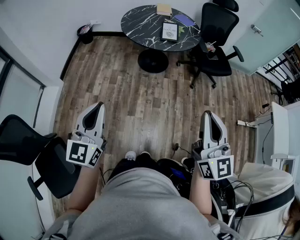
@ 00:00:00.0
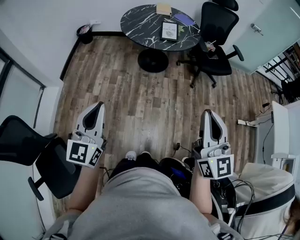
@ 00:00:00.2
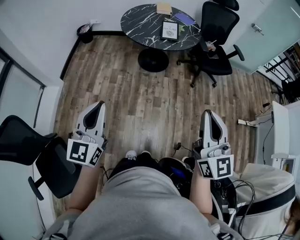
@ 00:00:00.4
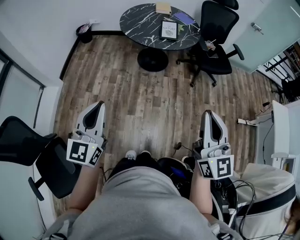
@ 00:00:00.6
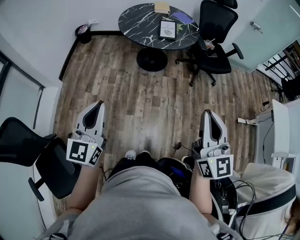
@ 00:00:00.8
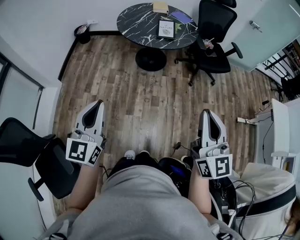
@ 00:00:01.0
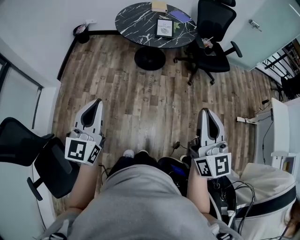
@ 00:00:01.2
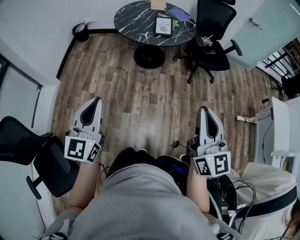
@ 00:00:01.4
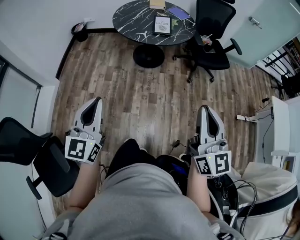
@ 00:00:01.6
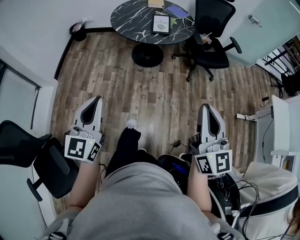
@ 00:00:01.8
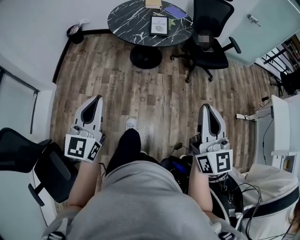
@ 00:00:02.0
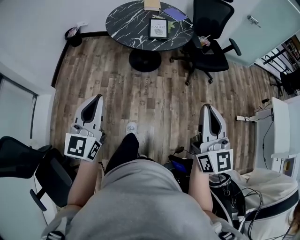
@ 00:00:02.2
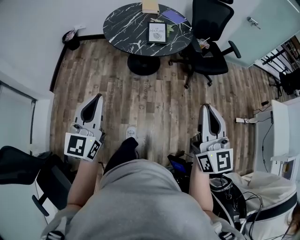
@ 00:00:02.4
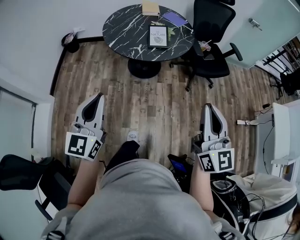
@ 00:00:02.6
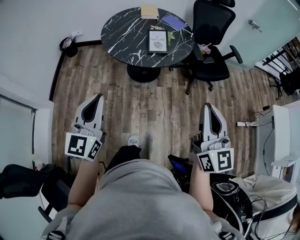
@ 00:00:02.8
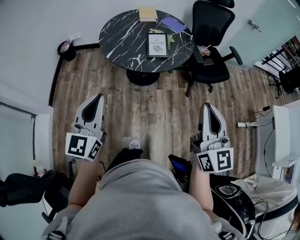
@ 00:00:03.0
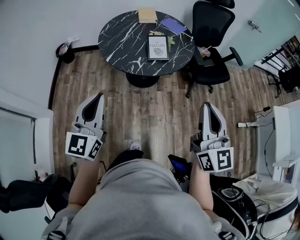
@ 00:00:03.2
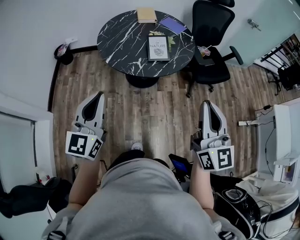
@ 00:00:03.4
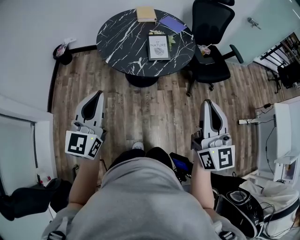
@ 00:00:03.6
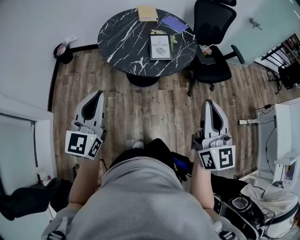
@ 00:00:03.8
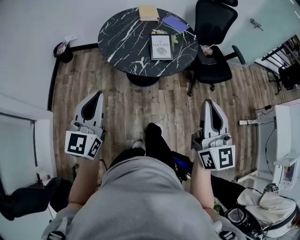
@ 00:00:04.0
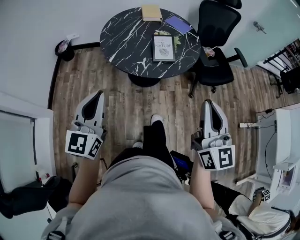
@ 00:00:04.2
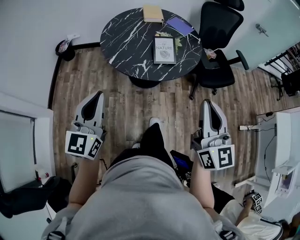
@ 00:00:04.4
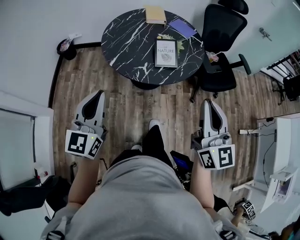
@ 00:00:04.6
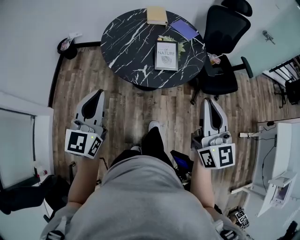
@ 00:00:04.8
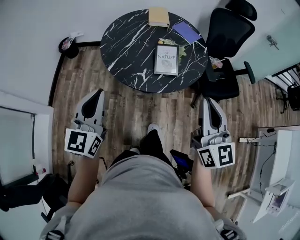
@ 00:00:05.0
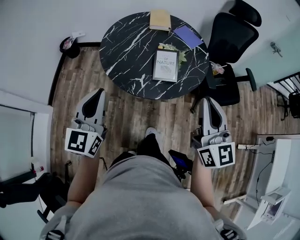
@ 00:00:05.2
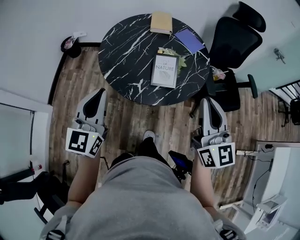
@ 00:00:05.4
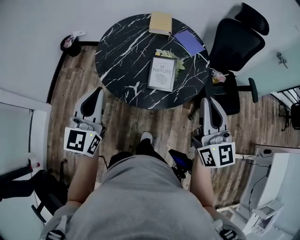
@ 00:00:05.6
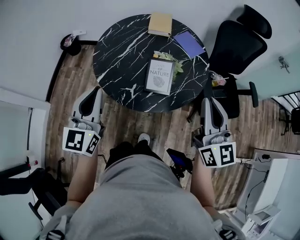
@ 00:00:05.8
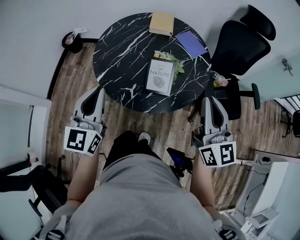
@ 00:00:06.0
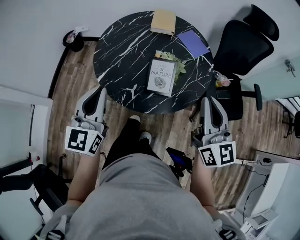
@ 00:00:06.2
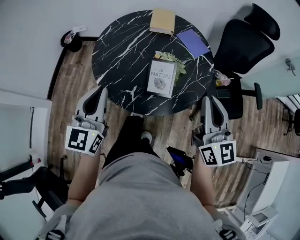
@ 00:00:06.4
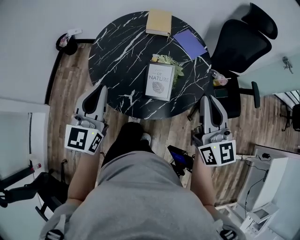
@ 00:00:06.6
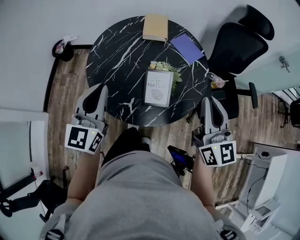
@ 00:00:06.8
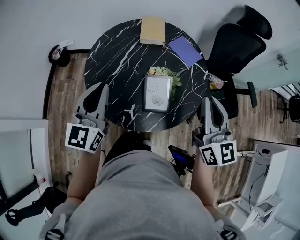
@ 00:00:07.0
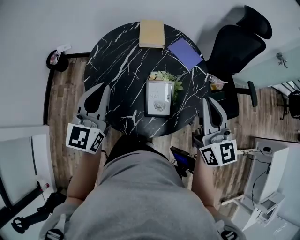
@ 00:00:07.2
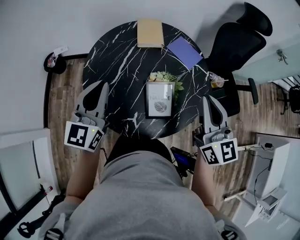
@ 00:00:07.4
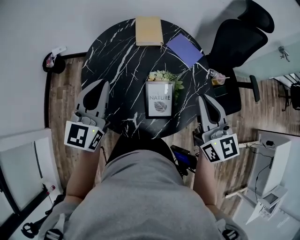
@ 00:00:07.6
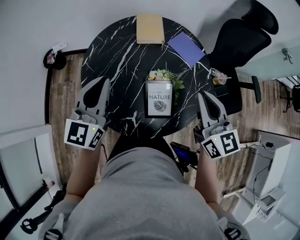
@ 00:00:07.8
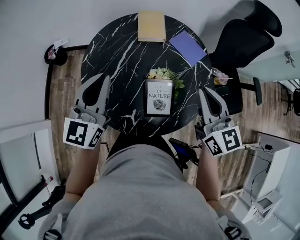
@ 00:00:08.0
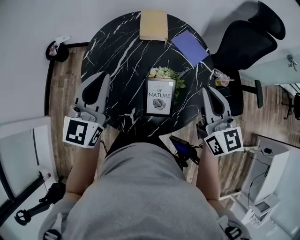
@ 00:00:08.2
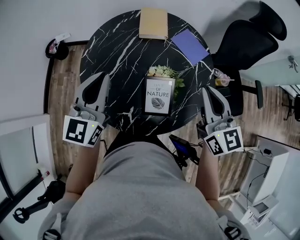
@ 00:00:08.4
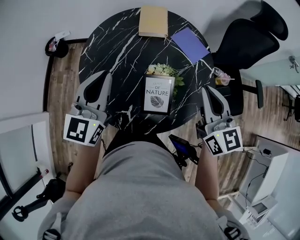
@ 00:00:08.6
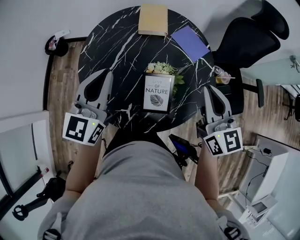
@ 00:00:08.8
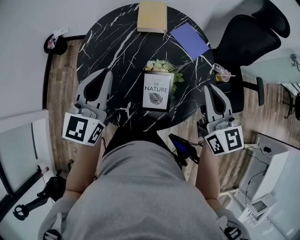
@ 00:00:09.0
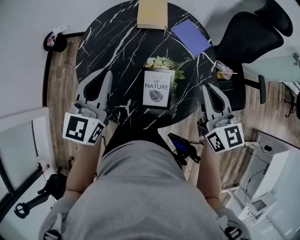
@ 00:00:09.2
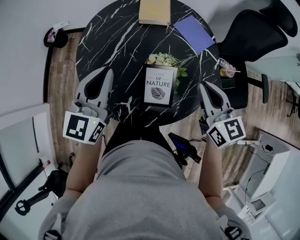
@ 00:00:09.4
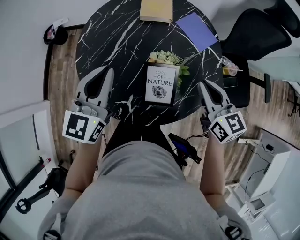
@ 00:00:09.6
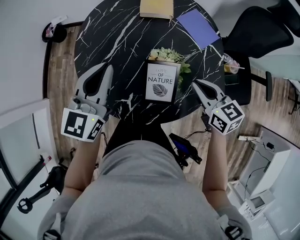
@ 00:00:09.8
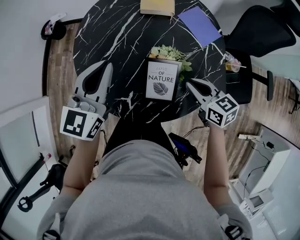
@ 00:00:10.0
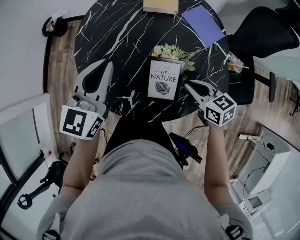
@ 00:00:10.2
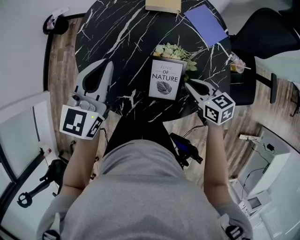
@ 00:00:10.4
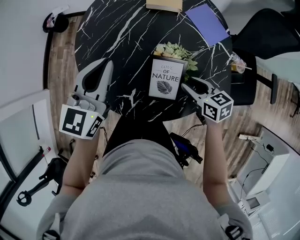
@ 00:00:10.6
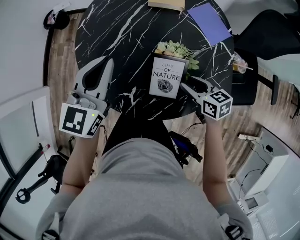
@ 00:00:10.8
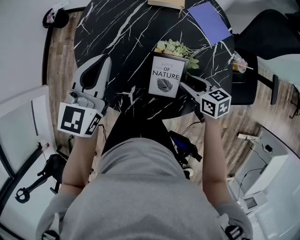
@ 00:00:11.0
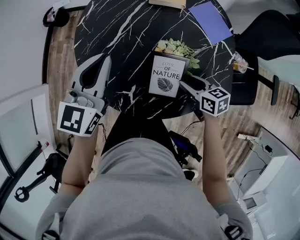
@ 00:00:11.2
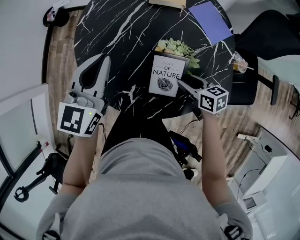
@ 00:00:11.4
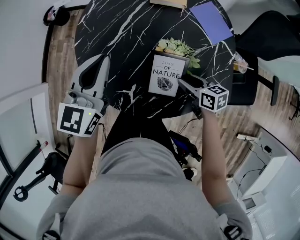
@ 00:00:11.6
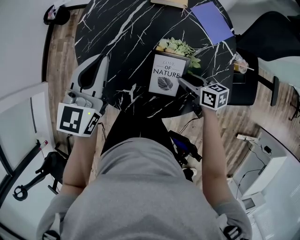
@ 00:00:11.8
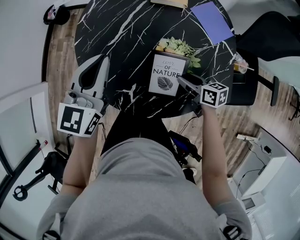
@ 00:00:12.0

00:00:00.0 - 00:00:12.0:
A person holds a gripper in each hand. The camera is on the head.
00:00:00.0 - 00:00:01.6: The right gripper ends up approximately 5 cm from where it was; the left gripper travels to the right by roughly 5 cm.
00:00:01.6 - 00:00:03.0: The two grippers go some 25 cm forward.
00:00:03.0 - 00:00:04.4: The right gripper is displaced forward and to the left by roughly 10 cm; the left gripper is displaced forward by about 10 cm.
00:00:04.4 - 00:00:06.0: The grippers both shift forward and to the right by some 25 cm.
00:00:06.0 - 00:00:07.6: Both grippers move forward, roughly 20 cm.
00:00:07.6 - 00:00:09.0: The right gripper ends up approximately 5 cm from where it was.
00:00:09.0 - 00:00:10.4: The left gripper heads downward, covering roughly 5 cm. Meanwhile the right gripper travels downward by some 25 cm, and swivels roughly 40 degrees.
00:00:10.4 - 00:00:12.0: The right gripper shifts about 5 cm downward, and opens its fingers.

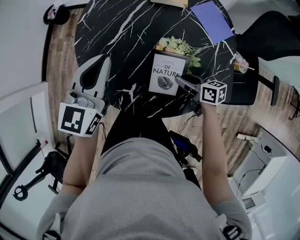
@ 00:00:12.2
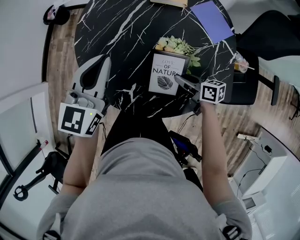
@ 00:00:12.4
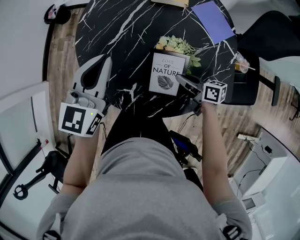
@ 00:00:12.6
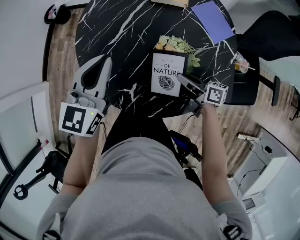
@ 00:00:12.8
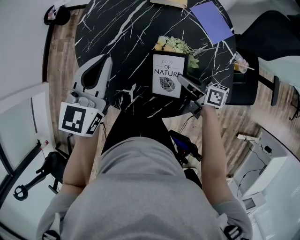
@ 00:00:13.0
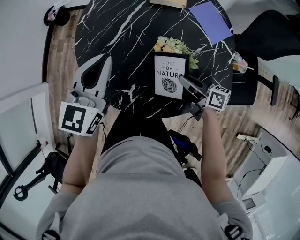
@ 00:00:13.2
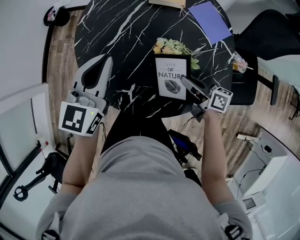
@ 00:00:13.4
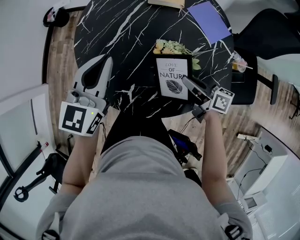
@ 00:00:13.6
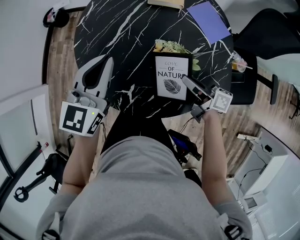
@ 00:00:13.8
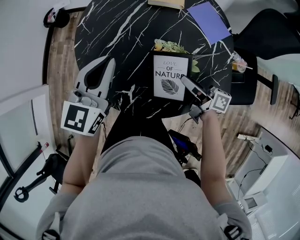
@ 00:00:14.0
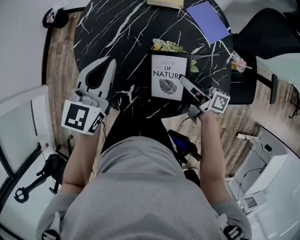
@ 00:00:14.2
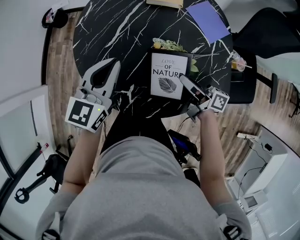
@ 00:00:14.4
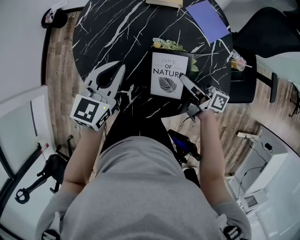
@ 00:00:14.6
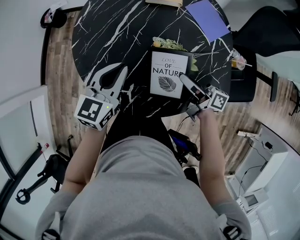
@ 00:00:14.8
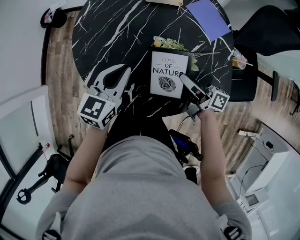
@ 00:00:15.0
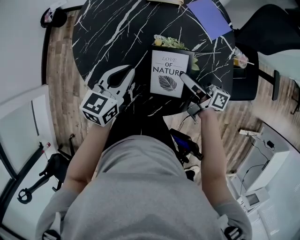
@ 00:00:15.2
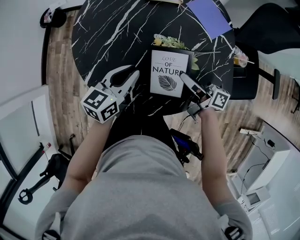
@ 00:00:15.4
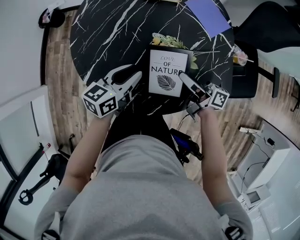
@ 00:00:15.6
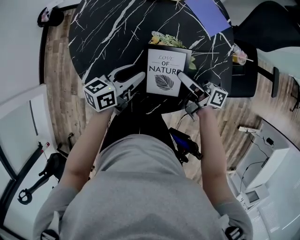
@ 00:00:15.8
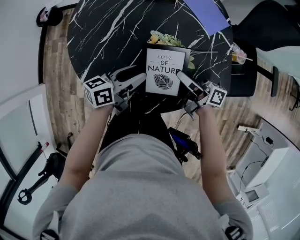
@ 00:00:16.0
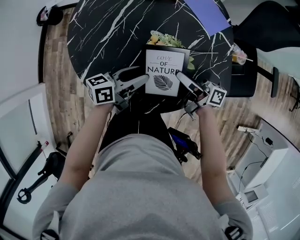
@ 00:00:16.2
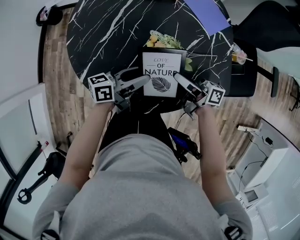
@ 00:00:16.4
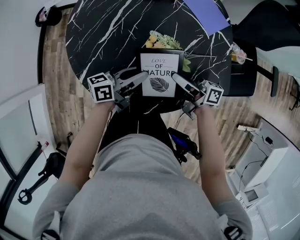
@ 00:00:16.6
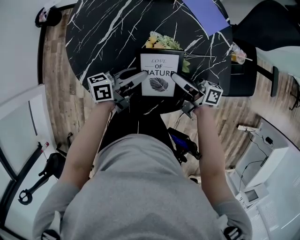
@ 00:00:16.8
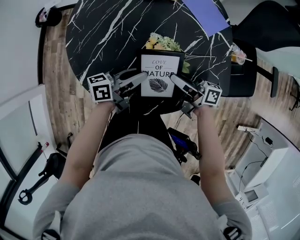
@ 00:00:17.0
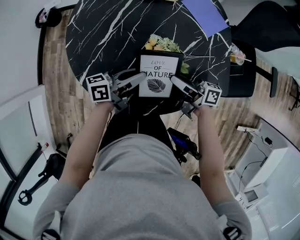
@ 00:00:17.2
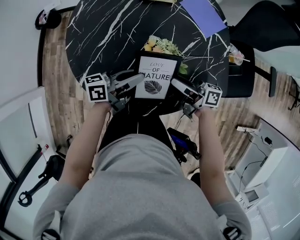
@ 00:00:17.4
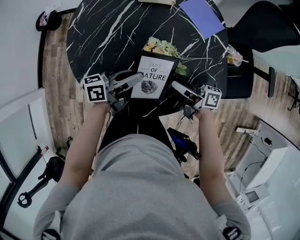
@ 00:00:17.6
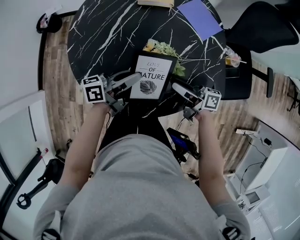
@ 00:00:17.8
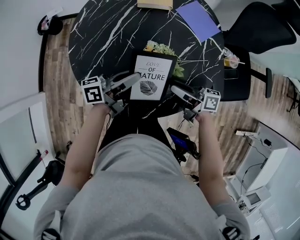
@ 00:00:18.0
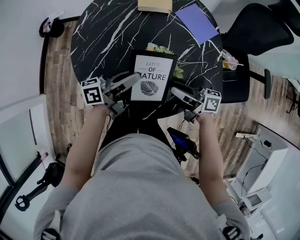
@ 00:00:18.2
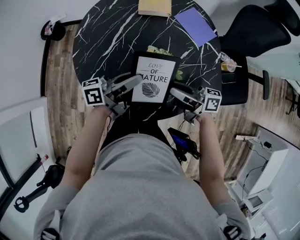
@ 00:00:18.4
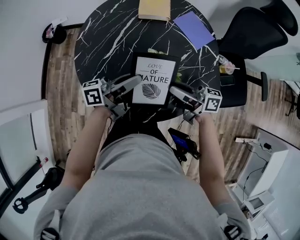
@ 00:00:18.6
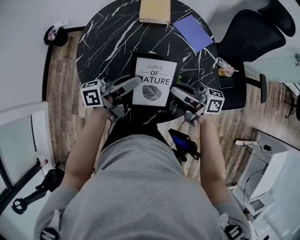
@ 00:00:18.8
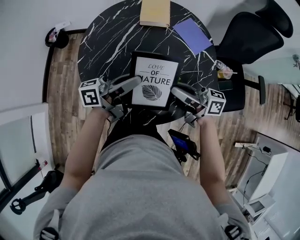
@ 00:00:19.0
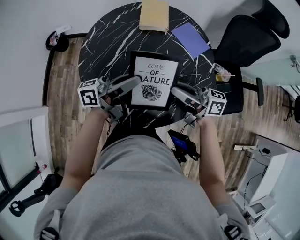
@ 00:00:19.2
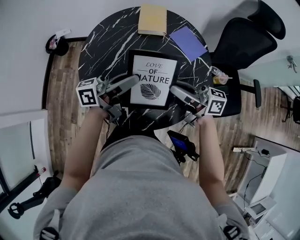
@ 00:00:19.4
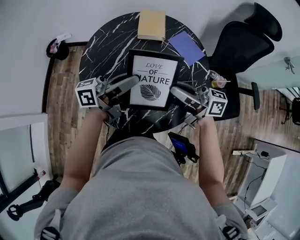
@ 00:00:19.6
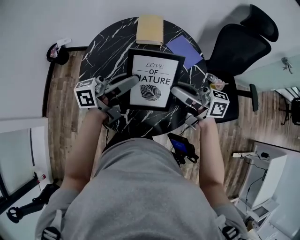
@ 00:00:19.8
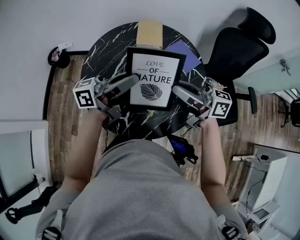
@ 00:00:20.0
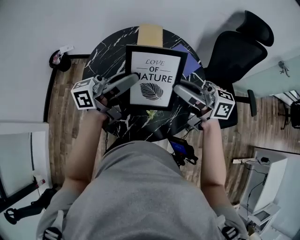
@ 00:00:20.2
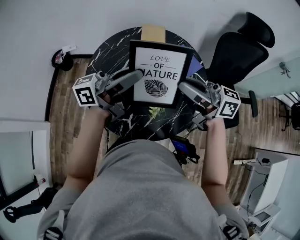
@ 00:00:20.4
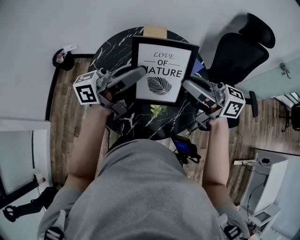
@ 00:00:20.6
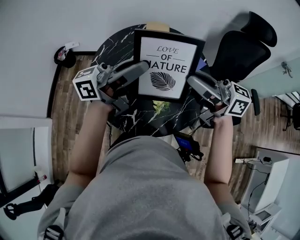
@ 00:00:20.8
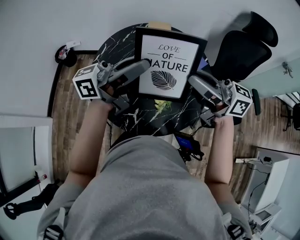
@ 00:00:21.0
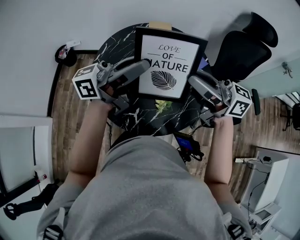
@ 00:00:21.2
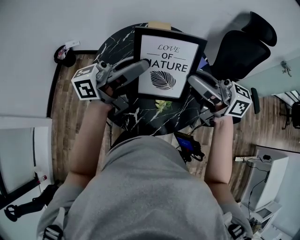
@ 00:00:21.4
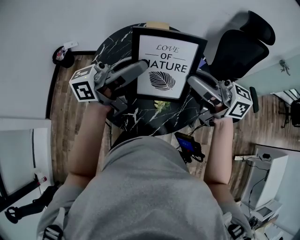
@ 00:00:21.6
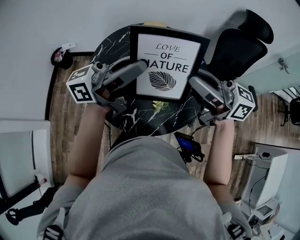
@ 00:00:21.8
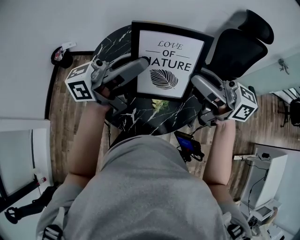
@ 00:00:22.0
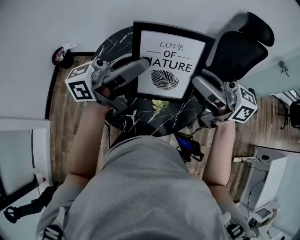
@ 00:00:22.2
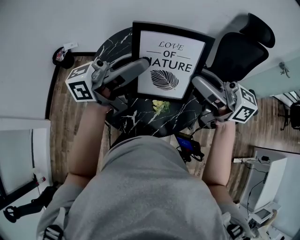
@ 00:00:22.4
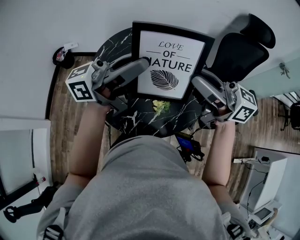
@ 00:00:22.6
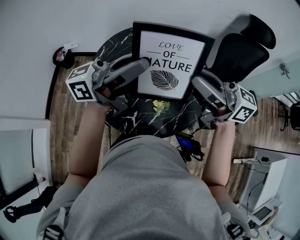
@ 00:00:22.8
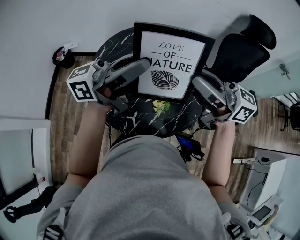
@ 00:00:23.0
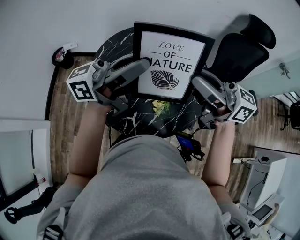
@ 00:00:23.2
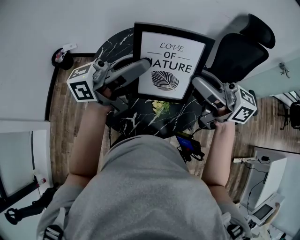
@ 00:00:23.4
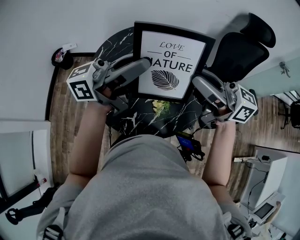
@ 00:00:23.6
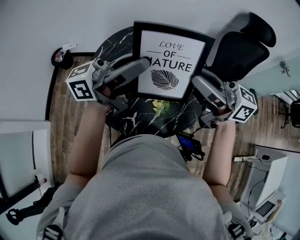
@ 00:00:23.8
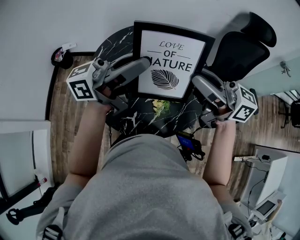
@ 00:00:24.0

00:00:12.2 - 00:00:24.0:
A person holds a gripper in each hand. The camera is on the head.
00:00:12.2 - 00:00:13.6: The right gripper shifts about 5 cm upward, changes its angle by roughly 20 degrees, and closes up.
00:00:13.6 - 00:00:15.2: The left gripper moves downward, roughly 10 cm, and turns by about 20 degrees; the right gripper swivels about 20 degrees.
00:00:15.2 - 00:00:16.6: The left gripper is displaced downward and to the right by approximately 10 cm, rotates about 50 degrees, and opens, then closes once more.
00:00:16.6 - 00:00:18.2: The left gripper is displaced upward by approximately 10 cm, while the right gripper opens its fingers.
00:00:18.2 - 00:00:19.6: The grippers both shift upward by approximately 15 cm. The right gripper rotates approximately 20 degrees, and closes.
00:00:19.6 - 00:00:21.0: The two grippers go about 15 cm upward.
00:00:21.0 - 00:00:22.6: The grippers make only small movements.
00:00:22.6 - 00:00:24.0: Both grippers stay put.
